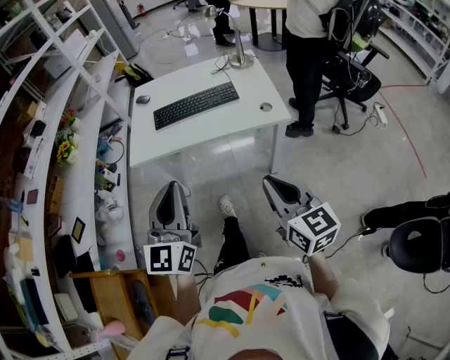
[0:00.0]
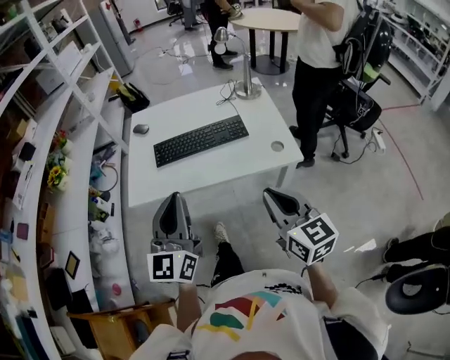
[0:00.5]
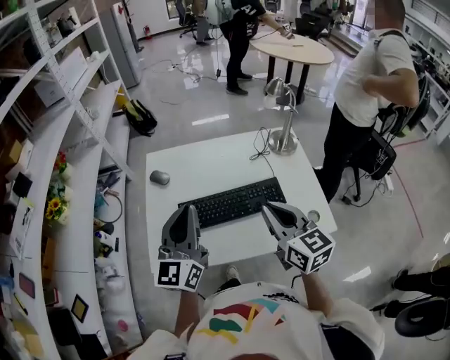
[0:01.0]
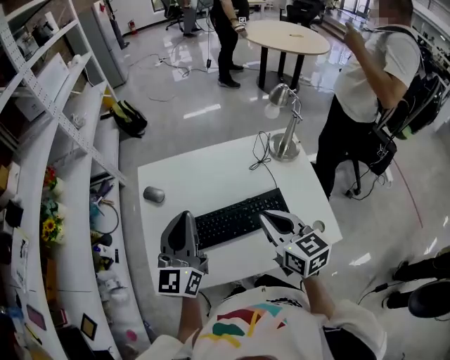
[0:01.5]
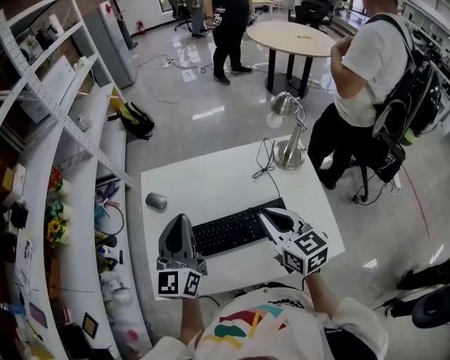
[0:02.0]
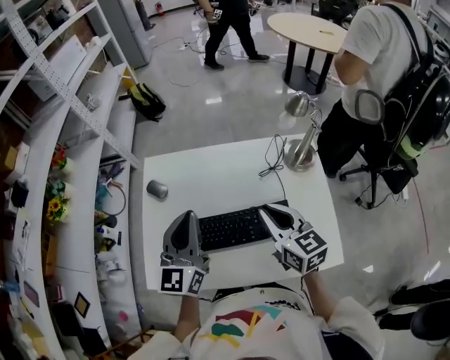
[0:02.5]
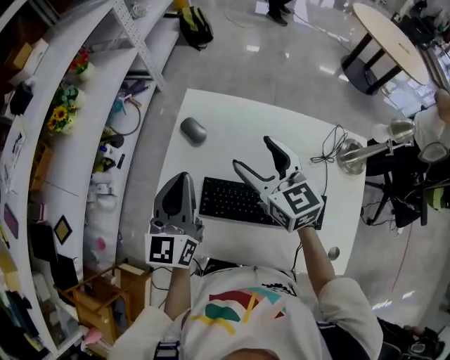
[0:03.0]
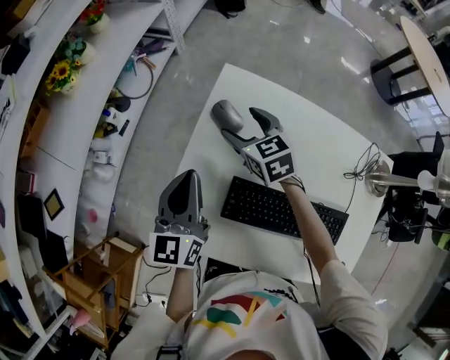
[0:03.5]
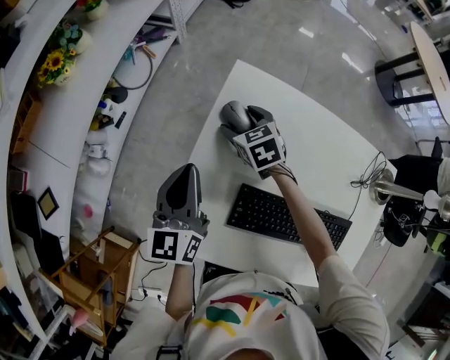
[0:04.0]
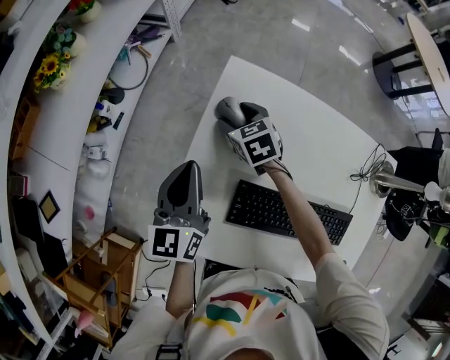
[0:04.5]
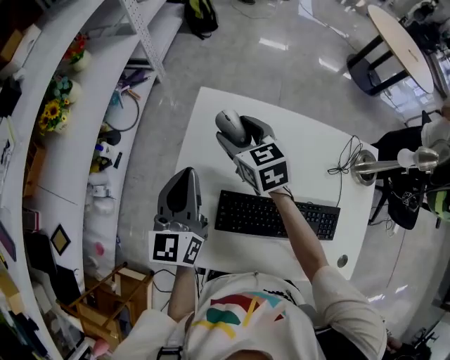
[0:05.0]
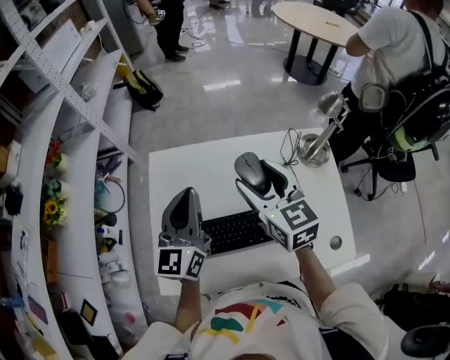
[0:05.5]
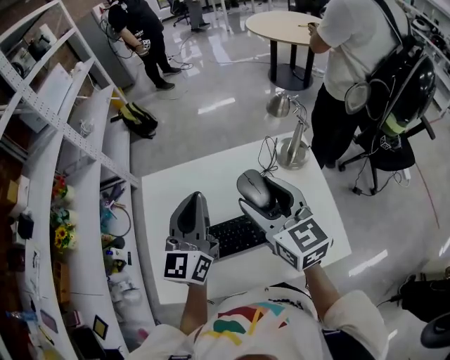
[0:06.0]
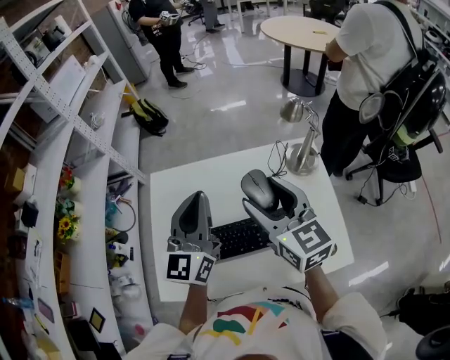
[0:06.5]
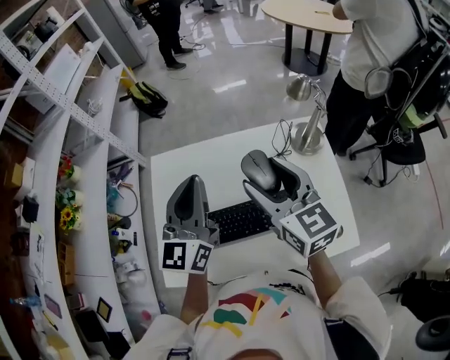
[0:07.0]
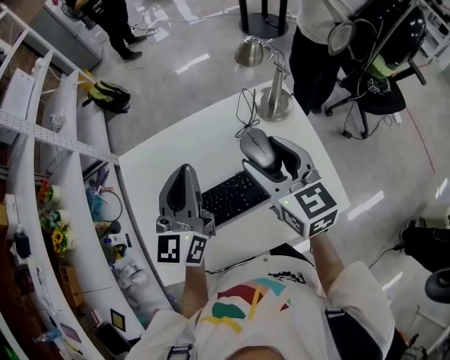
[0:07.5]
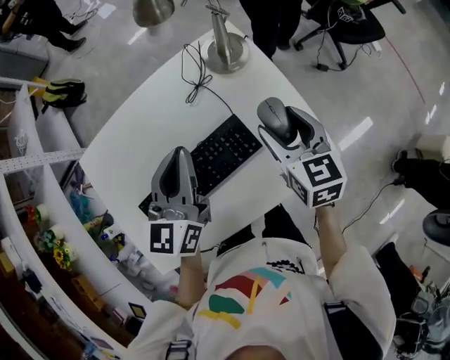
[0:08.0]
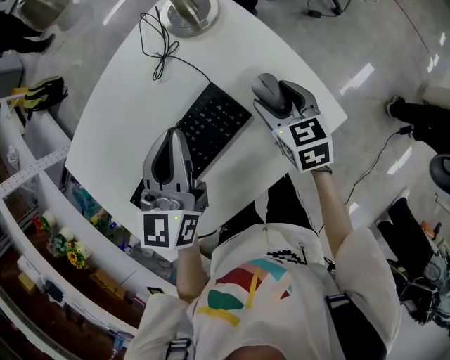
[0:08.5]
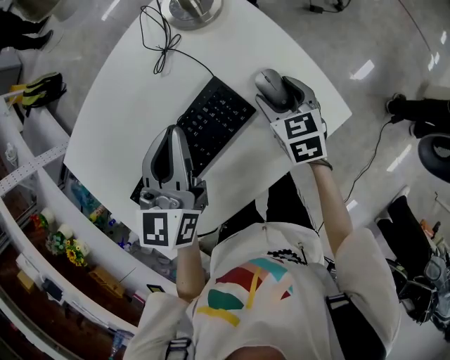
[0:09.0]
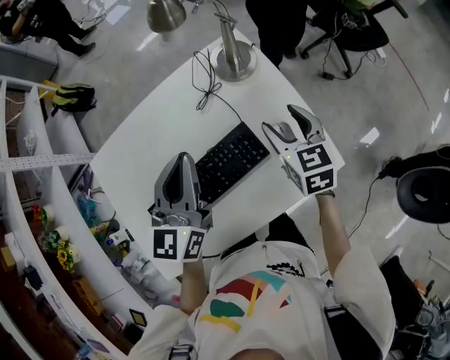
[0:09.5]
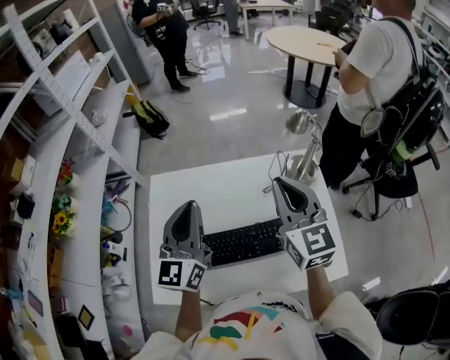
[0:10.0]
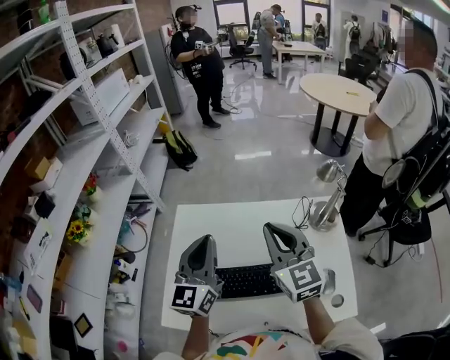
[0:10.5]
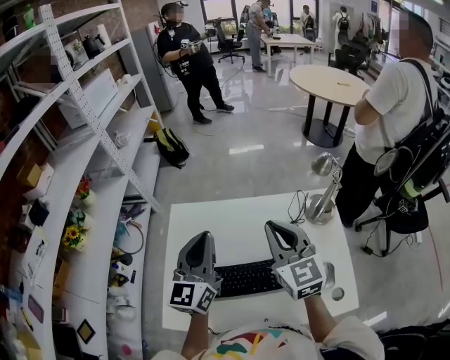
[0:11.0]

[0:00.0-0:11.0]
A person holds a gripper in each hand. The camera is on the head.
0:00.0 to 0:02.0: Both grippers are carried forward, about 60 cm.
0:02.0 to 0:03.5: The left gripper shifts by roughly 30 cm, and swivels approximately 30 degrees. Meanwhile the right gripper moves roughly 50 cm, rotates about 40 degrees, and opens up.
0:03.5 to 0:05.5: The right gripper moves approximately 35 cm, and turns by approximately 40 degrees. Meanwhile the left gripper shifts by roughly 25 cm, and rotates roughly 30 degrees.
0:05.5 to 0:07.5: The right gripper travels to the right and backward by about 20 cm; the left gripper travels to the right by approximately 15 cm.
0:07.5 to 0:09.0: The left gripper moves downward and to the right, about 20 cm, and swivels roughly 30 degrees. Meanwhile the right gripper travels downward and to the right by about 35 cm, and tilts its fingers some 30 degrees downward.
0:09.0 to 0:11.0: The right gripper travels upward by about 35 cm, tilts its fingers about 40 degrees upward, and closes up. Meanwhile the left gripper moves roughly 35 cm, and rotates approximately 40 degrees.

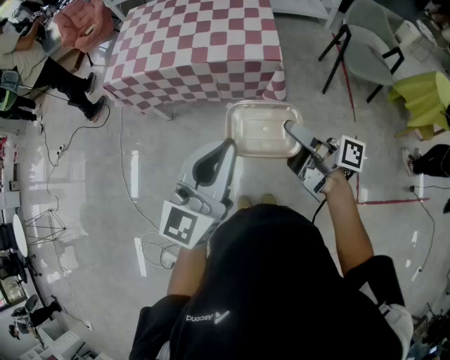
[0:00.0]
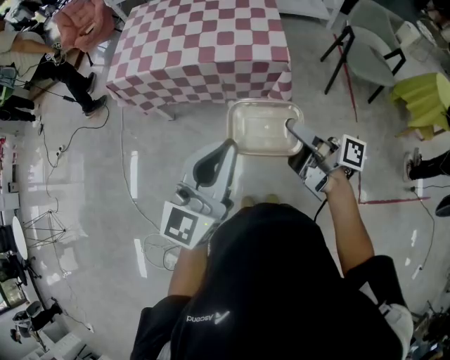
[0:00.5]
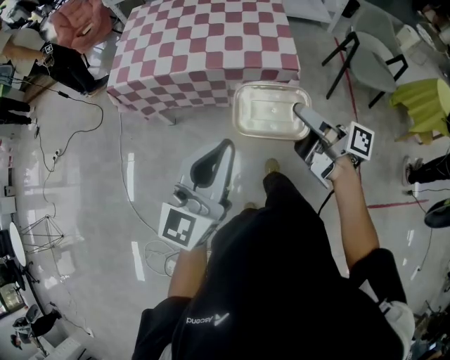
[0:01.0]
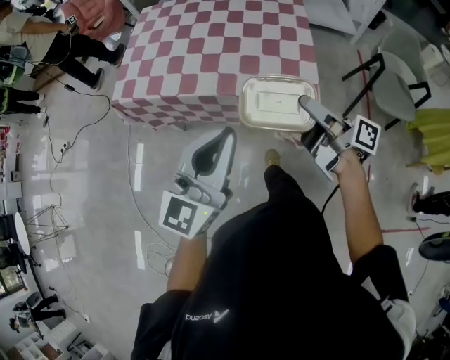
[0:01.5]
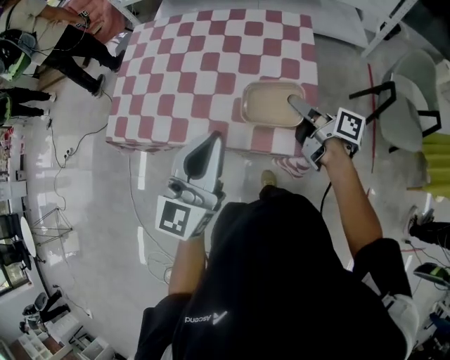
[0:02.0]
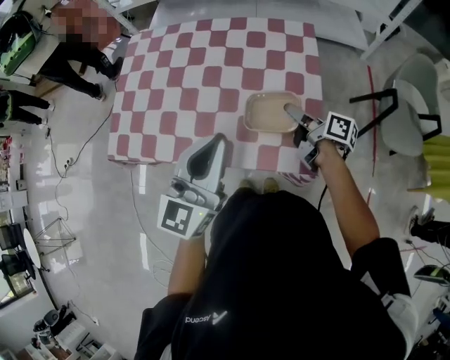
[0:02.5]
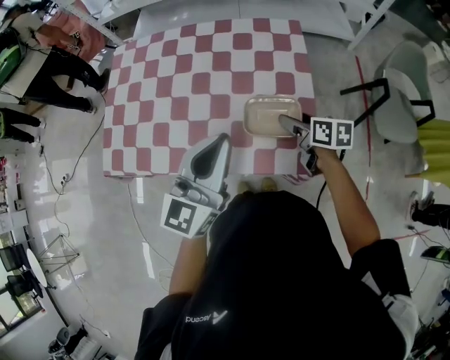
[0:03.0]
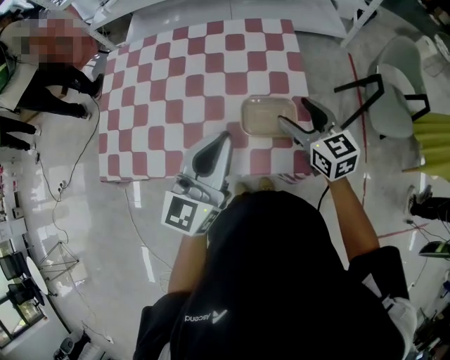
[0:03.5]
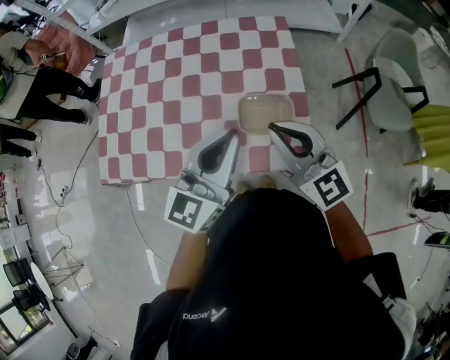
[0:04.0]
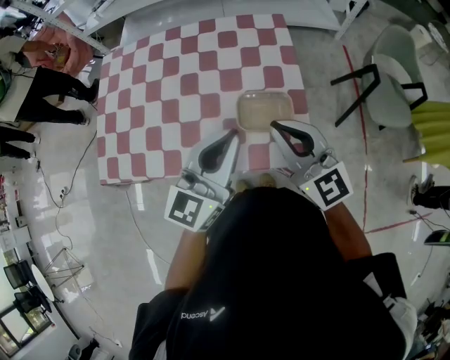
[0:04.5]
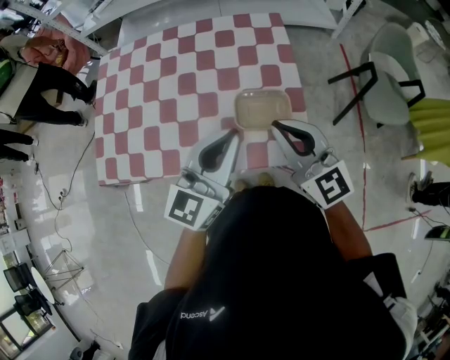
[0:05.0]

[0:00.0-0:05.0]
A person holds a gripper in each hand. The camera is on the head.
0:00.0 to 0:02.5: The left gripper moves forward and to the left, some 15 cm. Meanwhile the right gripper is displaced forward and downward by roughly 20 cm, and turns by about 30 degrees.
0:02.5 to 0:05.0: The right gripper goes some 20 cm upward and backward, rolls counterclockwise, seen from behind, by about 80 degrees, and closes its fingers; the left gripper travels to the right by approximately 5 cm.

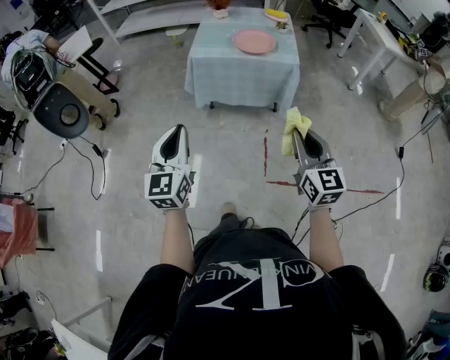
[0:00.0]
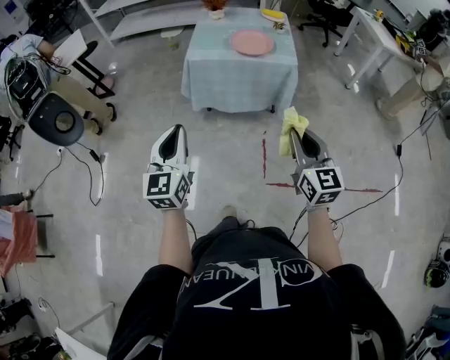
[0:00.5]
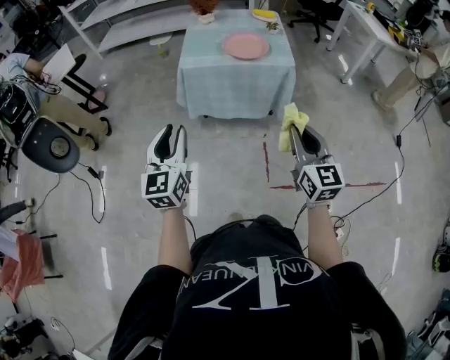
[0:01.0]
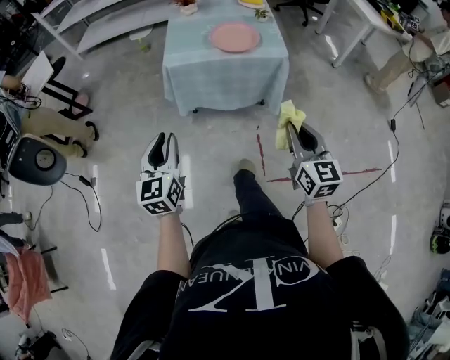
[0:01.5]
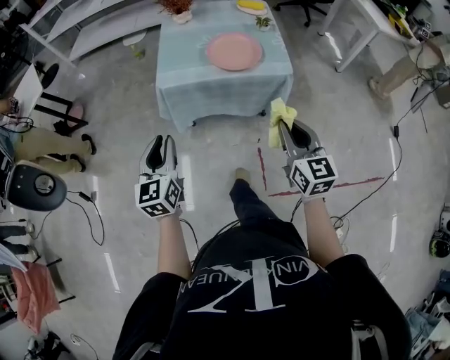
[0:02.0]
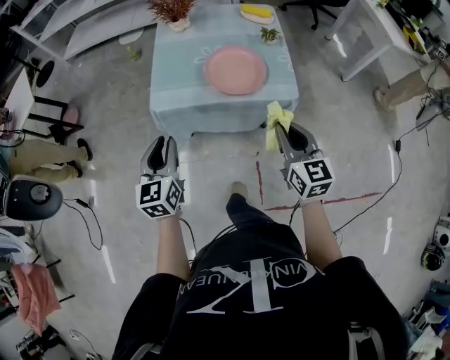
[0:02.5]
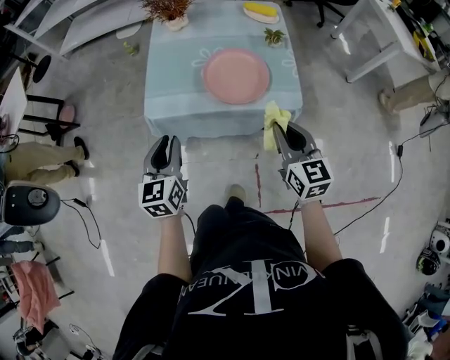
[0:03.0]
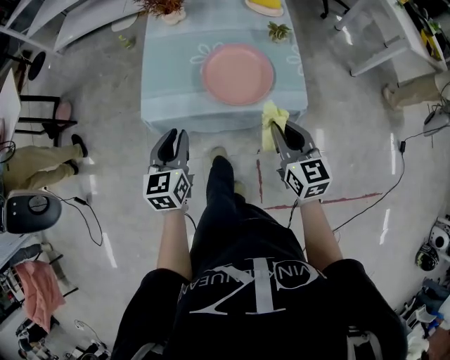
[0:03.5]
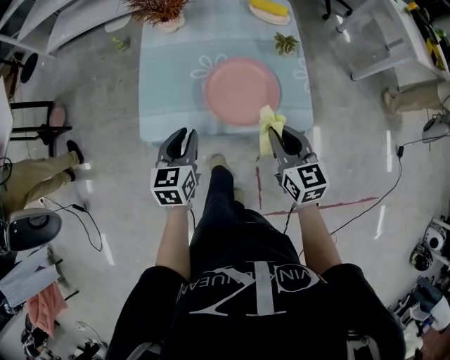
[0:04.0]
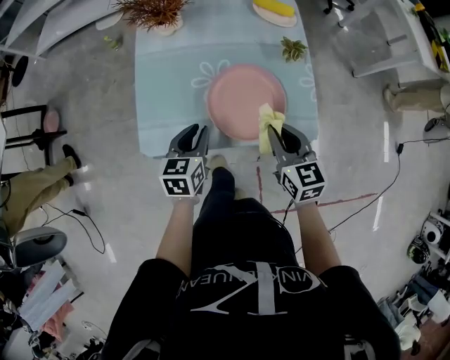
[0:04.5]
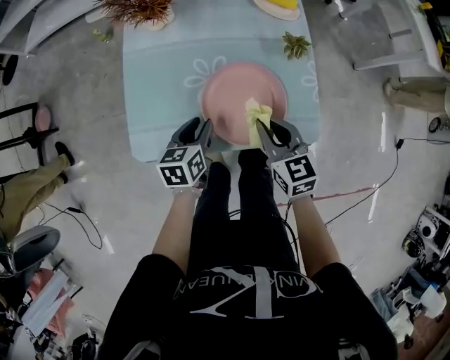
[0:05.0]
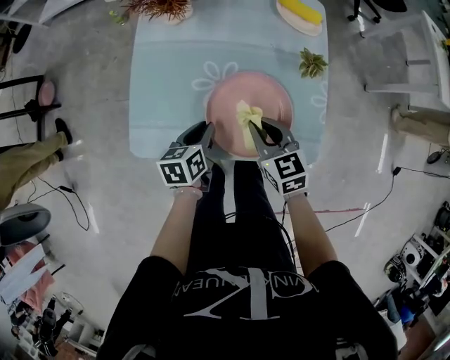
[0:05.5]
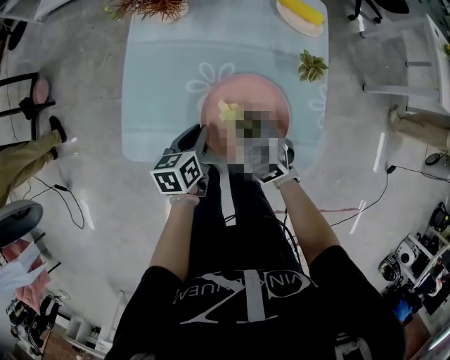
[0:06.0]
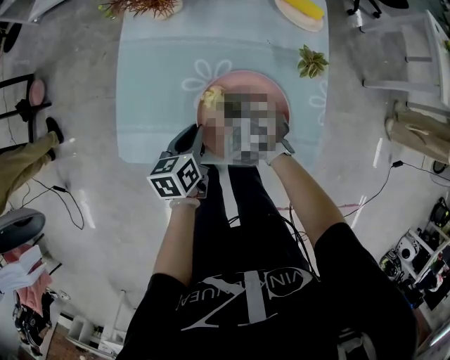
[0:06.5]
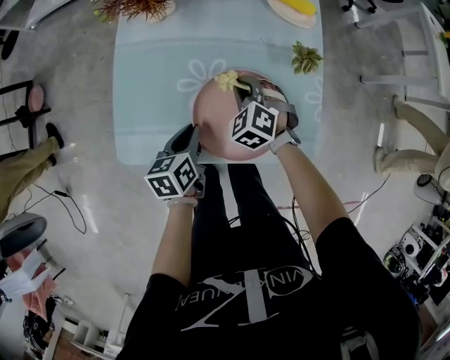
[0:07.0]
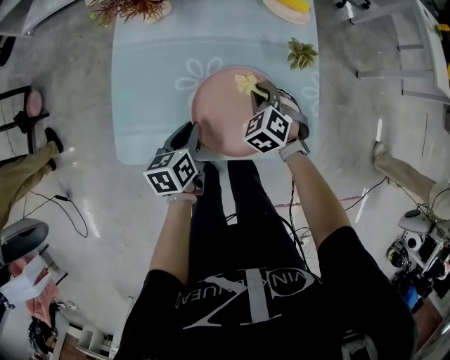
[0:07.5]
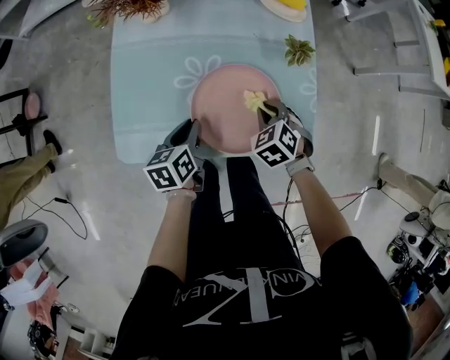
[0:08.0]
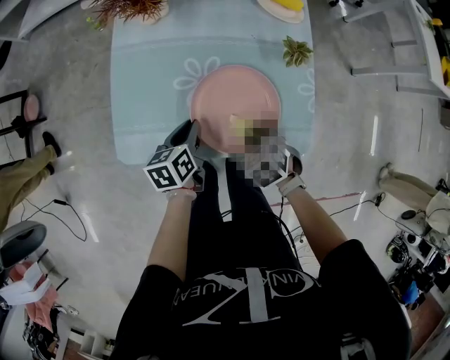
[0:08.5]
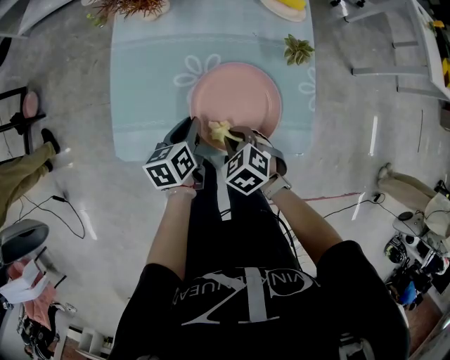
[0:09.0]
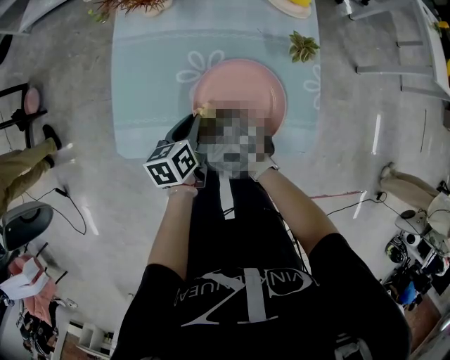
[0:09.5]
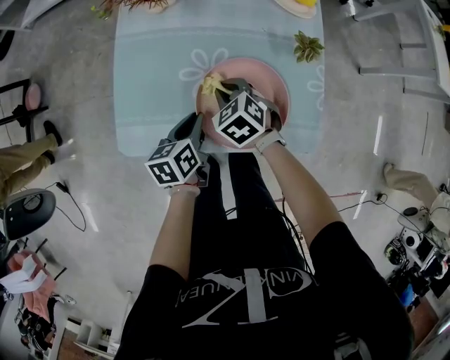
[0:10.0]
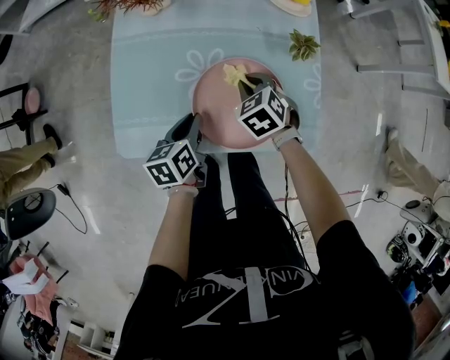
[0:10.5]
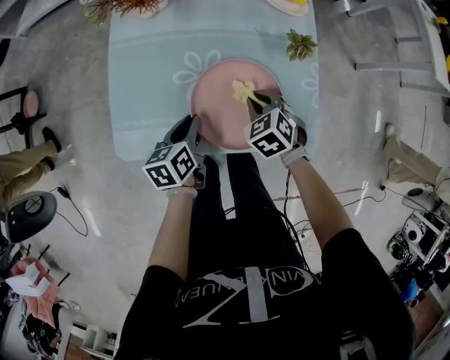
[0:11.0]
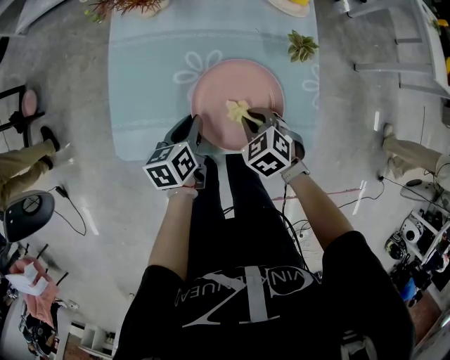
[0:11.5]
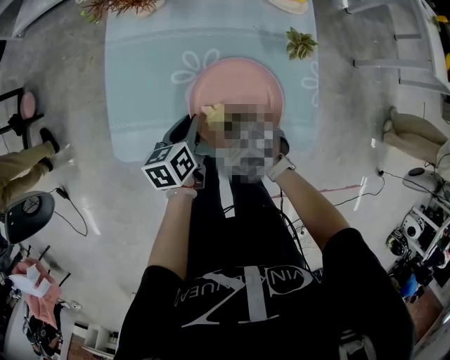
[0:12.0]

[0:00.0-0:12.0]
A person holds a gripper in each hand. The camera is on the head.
0:00.0 to 0:02.0: The grippers both shift forward by approximately 30 cm.
0:02.0 to 0:04.0: The grippers both shift forward by roughly 35 cm. The left gripper turns by some 20 degrees.
0:04.0 to 0:06.0: The right gripper moves forward, downward and to the left, approximately 25 cm, and turns by about 40 degrees; the left gripper shifts about 15 cm forward and downward, and swivels approximately 30 degrees.
0:06.0 to 0:08.0: The right gripper heads to the right, covering some 10 cm, and swivels about 20 degrees.
0:08.0 to 0:10.0: The right gripper travels to the left by about 15 cm.
0:10.0 to 0:12.0: The right gripper shifts roughly 10 cm backward, and travels to the right and back again, approximately 10 cm each way.
